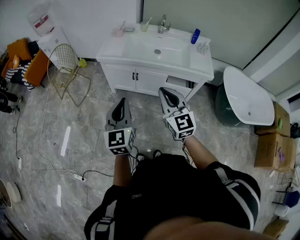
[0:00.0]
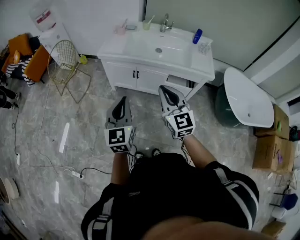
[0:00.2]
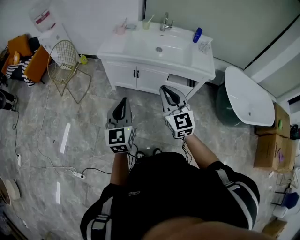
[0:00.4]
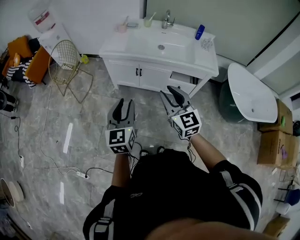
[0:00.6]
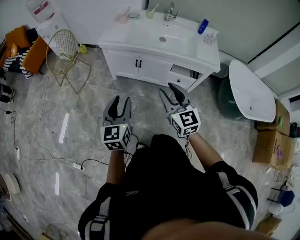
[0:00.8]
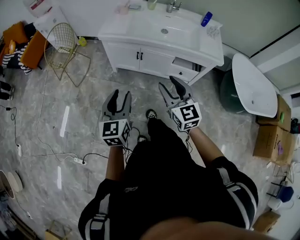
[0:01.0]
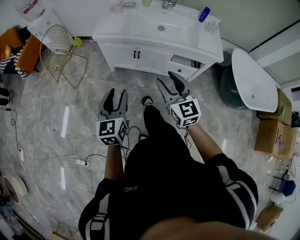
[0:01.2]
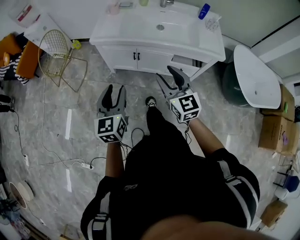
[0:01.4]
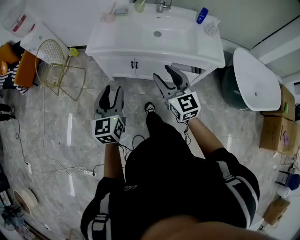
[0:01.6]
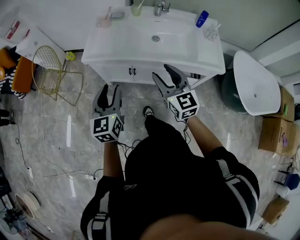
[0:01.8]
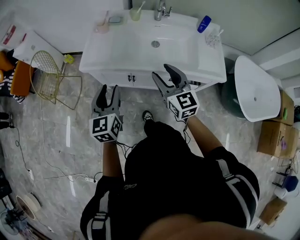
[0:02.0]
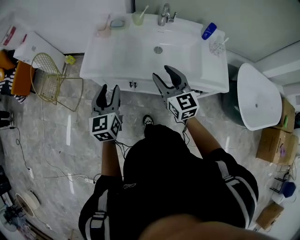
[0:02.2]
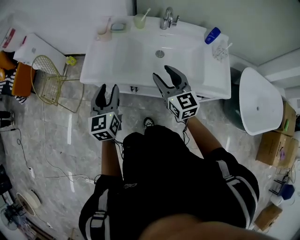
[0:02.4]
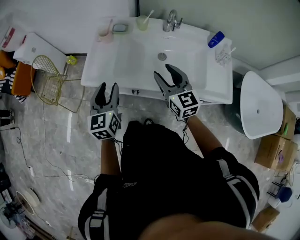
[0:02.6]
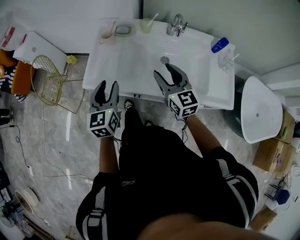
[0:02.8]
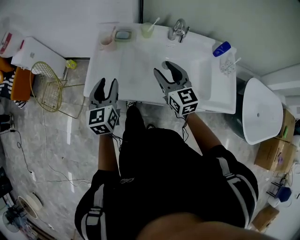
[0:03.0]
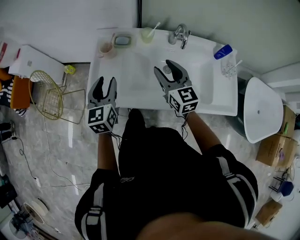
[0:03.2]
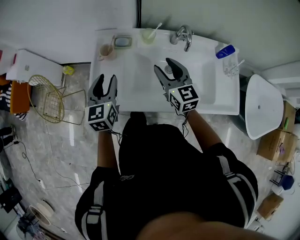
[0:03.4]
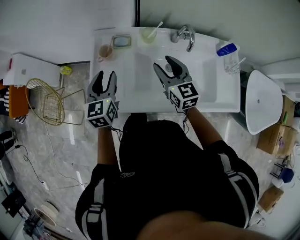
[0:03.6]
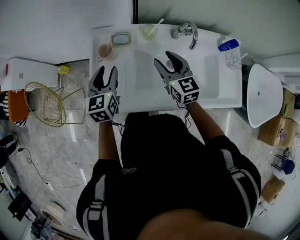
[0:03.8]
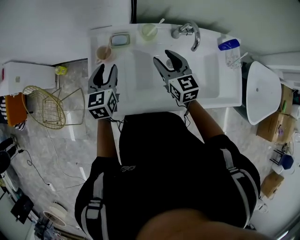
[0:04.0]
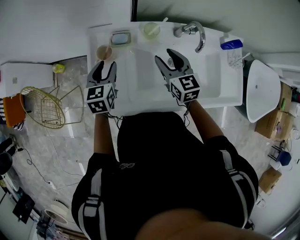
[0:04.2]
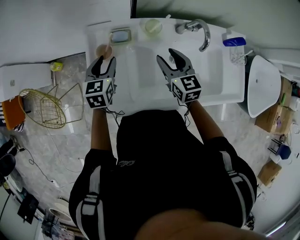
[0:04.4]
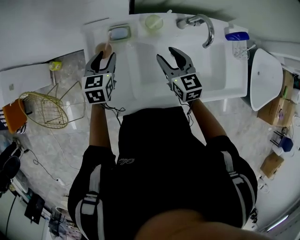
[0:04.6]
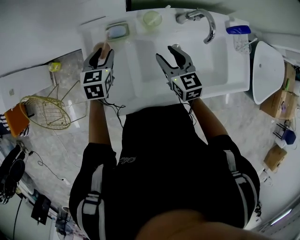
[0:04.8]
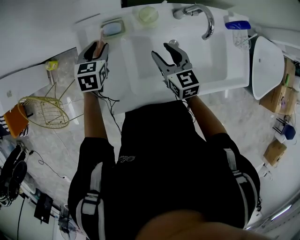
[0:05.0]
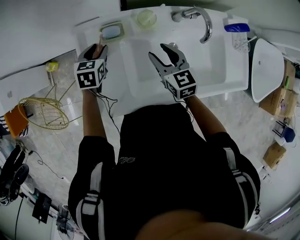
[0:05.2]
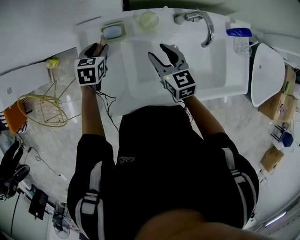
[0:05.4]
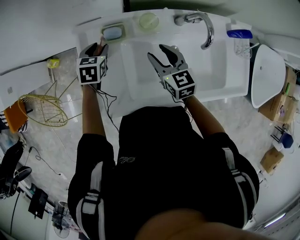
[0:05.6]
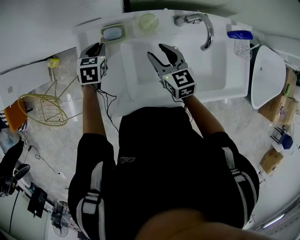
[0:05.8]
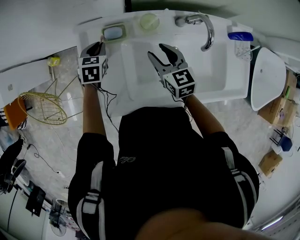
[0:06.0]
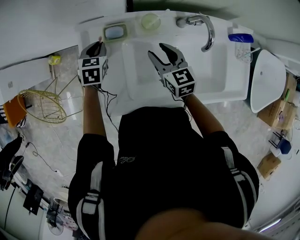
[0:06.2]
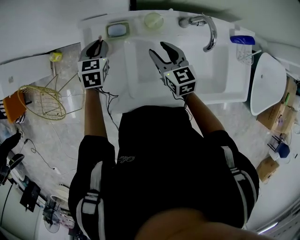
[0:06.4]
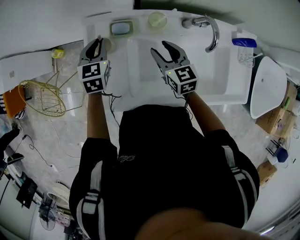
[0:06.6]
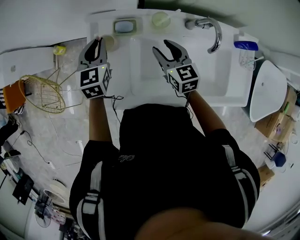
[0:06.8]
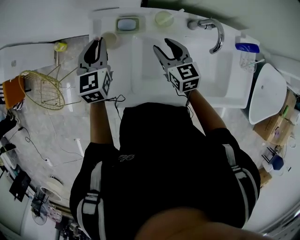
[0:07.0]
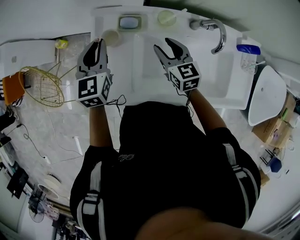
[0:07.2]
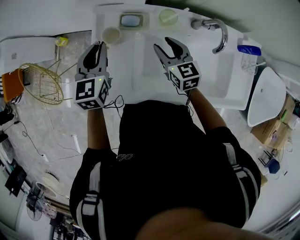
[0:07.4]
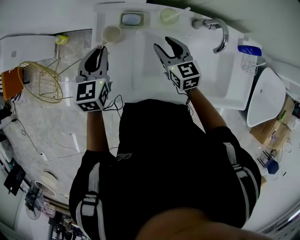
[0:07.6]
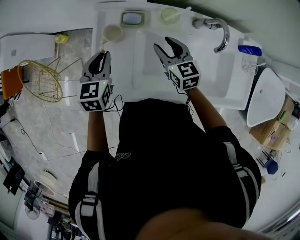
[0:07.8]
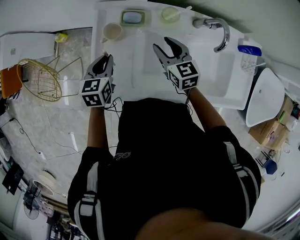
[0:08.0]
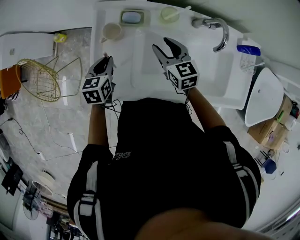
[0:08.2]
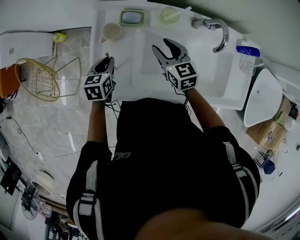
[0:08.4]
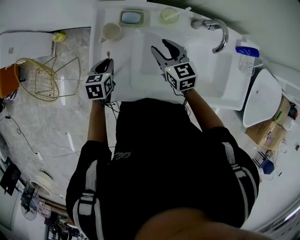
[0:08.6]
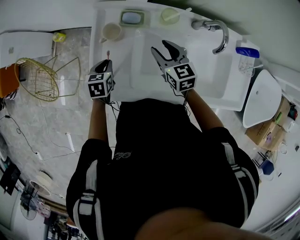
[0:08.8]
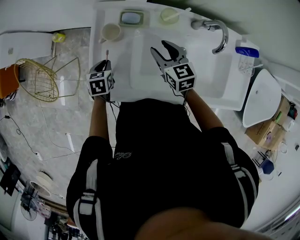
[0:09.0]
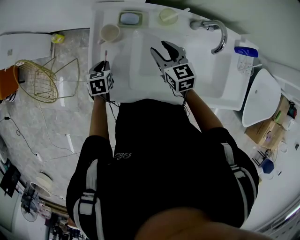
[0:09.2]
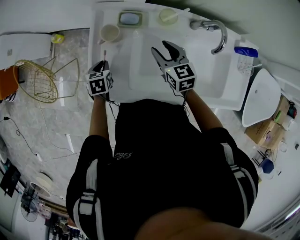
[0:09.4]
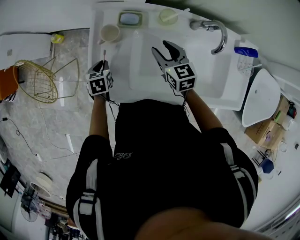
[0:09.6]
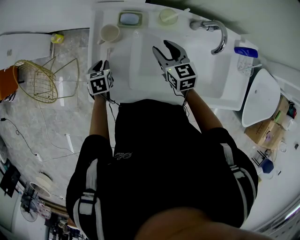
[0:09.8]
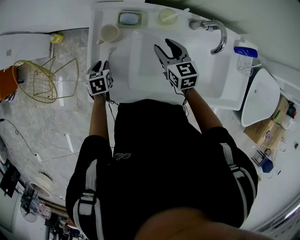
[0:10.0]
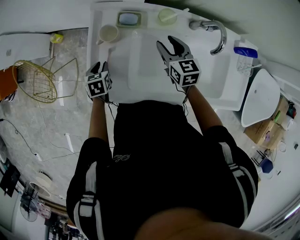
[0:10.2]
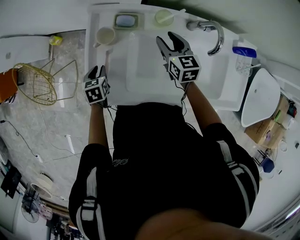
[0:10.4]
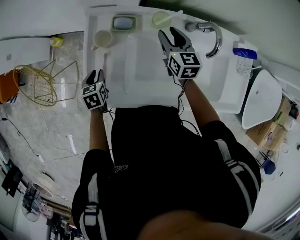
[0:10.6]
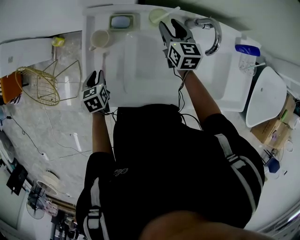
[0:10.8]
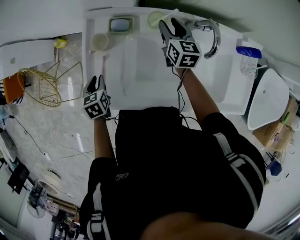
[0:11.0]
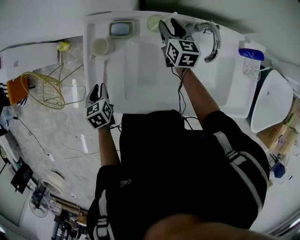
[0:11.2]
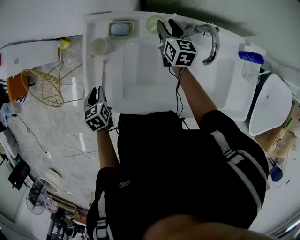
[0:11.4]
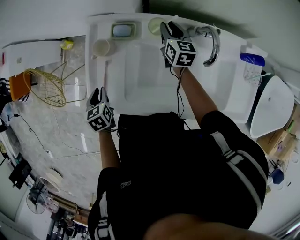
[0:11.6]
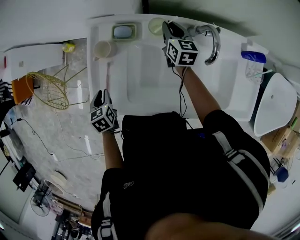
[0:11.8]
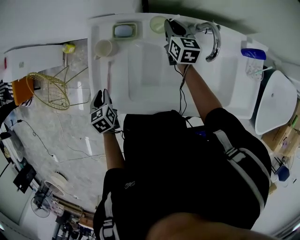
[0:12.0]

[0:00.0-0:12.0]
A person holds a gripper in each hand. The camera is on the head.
0:00.0 to 0:01.6: The right gripper shifts approximately 15 cm forward, and opens up, while the left gripper goes about 20 cm forward and downward, and opens.
0:01.6 to 0:03.0: Both grippers move forward, roughly 40 cm.
0:03.0 to 0:04.4: The right gripper travels forward and downward by about 20 cm, and rotates some 20 degrees, while the left gripper goes approximately 25 cm forward, and turns by some 30 degrees.
0:04.4 to 0:06.0: The right gripper moves about 5 cm. The left gripper heads downward and forward, covering roughly 10 cm, and closes its fingers.
0:06.0 to 0:07.6: The left gripper moves upward and backward, approximately 15 cm, and changes its angle by approximately 30 degrees.
0:07.6 to 0:09.0: The left gripper shifts roughly 20 cm downward, and swivels about 30 degrees.
0:09.0 to 0:10.4: The right gripper goes about 5 cm to the right.
0:10.4 to 0:12.0: The right gripper travels forward and to the right by roughly 10 cm, and closes its fingers. The left gripper is displaced backward by roughly 5 cm.

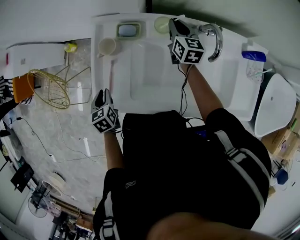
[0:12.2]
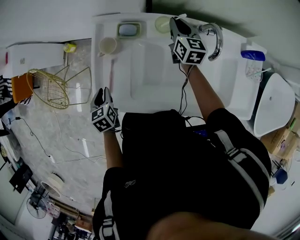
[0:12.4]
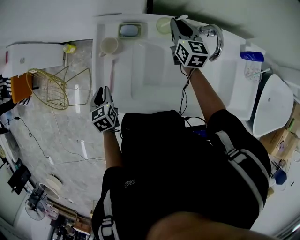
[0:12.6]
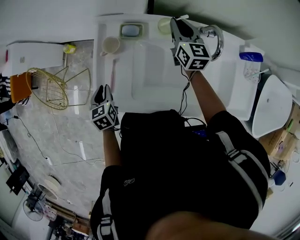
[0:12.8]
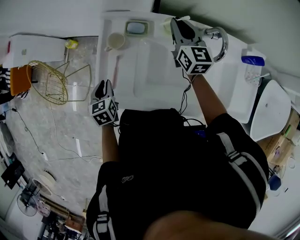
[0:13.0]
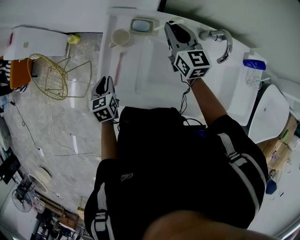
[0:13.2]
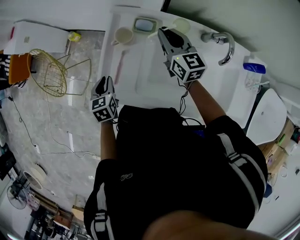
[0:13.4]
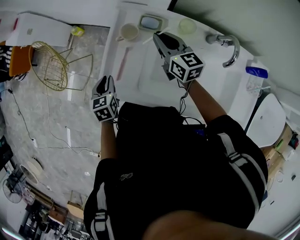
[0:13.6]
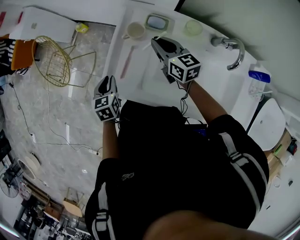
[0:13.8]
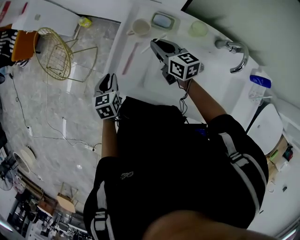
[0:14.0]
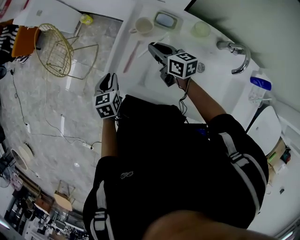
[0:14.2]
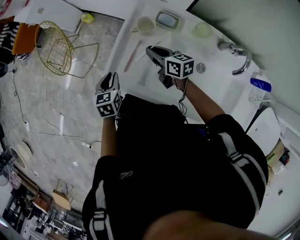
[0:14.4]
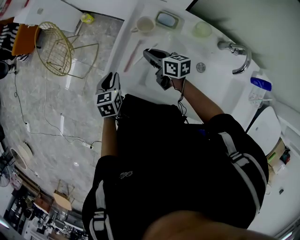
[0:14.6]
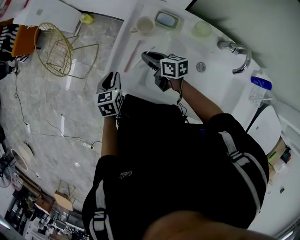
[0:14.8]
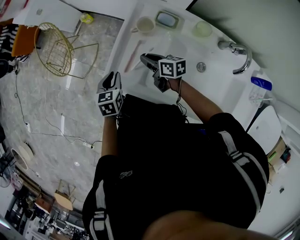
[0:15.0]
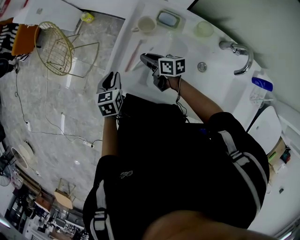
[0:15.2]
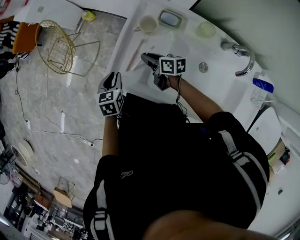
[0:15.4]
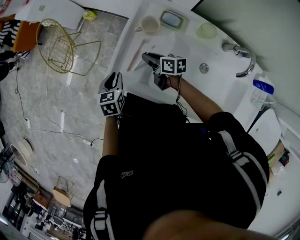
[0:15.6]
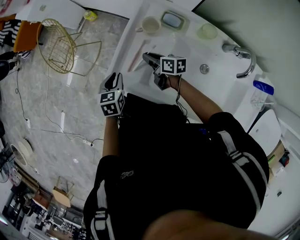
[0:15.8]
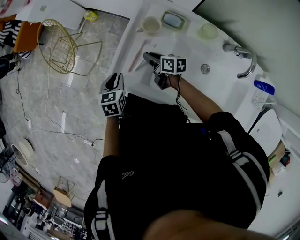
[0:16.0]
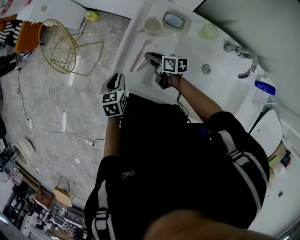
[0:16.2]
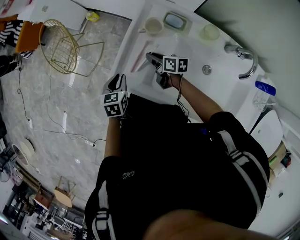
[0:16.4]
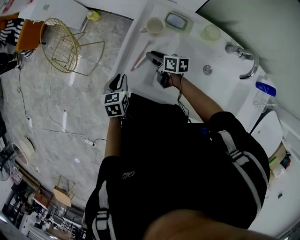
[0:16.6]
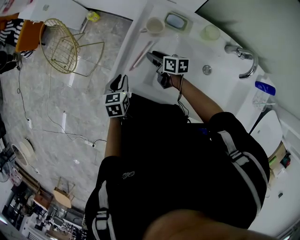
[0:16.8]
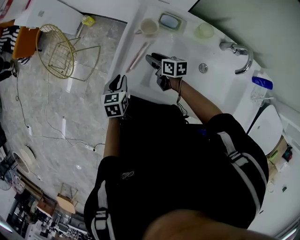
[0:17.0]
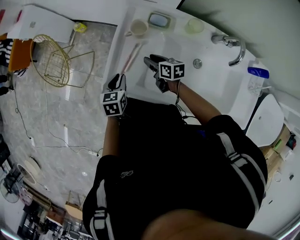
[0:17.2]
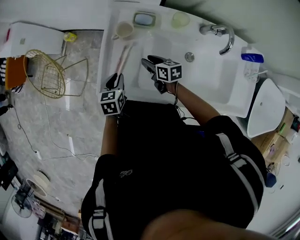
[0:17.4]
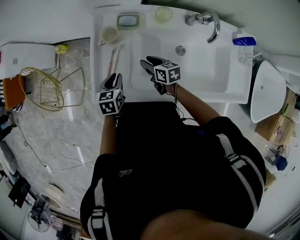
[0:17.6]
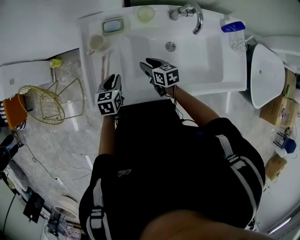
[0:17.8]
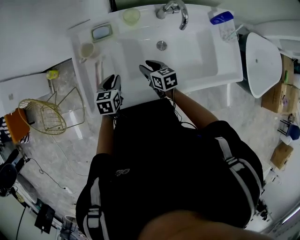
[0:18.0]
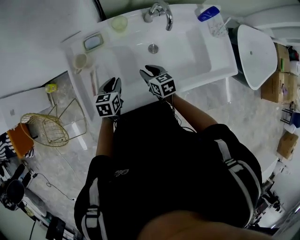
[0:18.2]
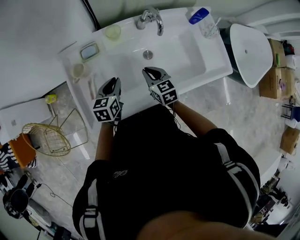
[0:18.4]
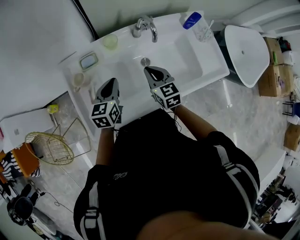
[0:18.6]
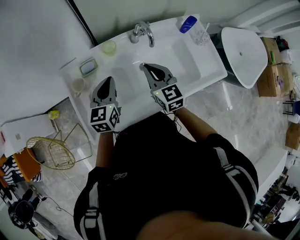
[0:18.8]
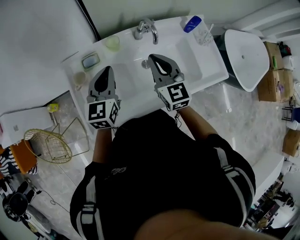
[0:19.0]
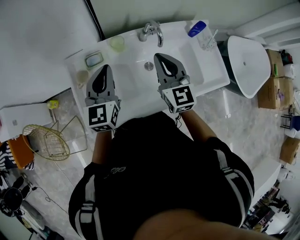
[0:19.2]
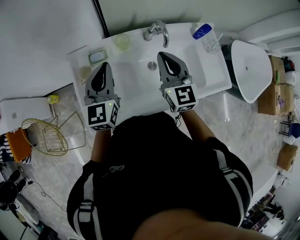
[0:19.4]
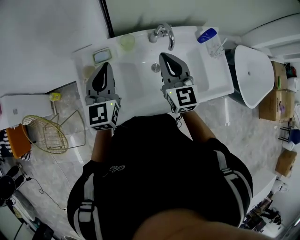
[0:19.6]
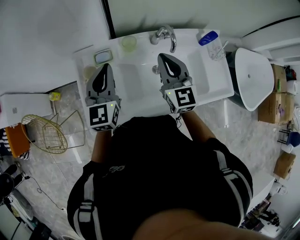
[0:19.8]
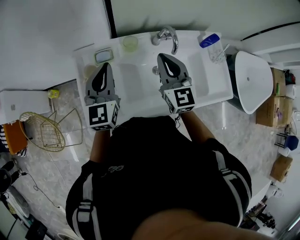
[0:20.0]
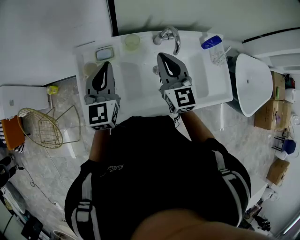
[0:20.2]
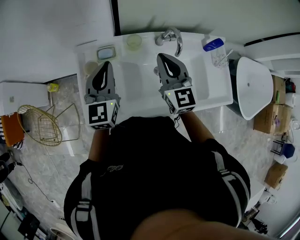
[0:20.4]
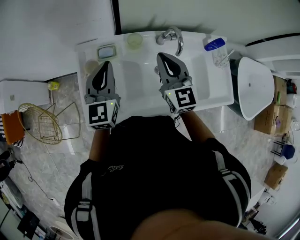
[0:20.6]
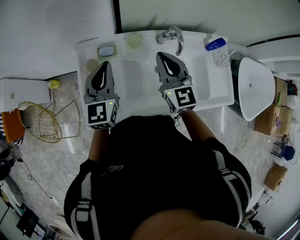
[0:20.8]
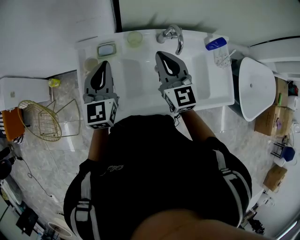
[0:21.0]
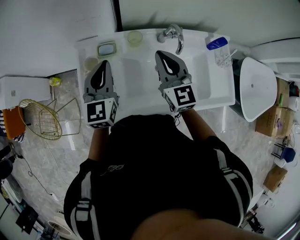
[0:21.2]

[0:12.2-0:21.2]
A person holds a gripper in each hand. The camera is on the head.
0:12.2 to 0:13.8: The right gripper shifts roughly 25 cm to the left, and turns by roughly 40 degrees. The left gripper shifts by some 5 cm.
0:13.8 to 0:15.2: The right gripper travels downward and to the left by roughly 15 cm, and swivels about 30 degrees.
0:15.2 to 0:16.6: The grippers make only small movements.
0:16.6 to 0:18.2: The left gripper changes place by approximately 20 cm, and swivels approximately 40 degrees, while the right gripper ends up about 25 cm from where it was, and changes its angle by about 40 degrees.
0:18.2 to 0:19.8: Both grippers travel together upward, approximately 25 cm. The right gripper tips its fingers upward by approximately 40 degrees, and closes its fingers. The left gripper tips its fingers upward by some 40 degrees.
0:19.8 to 0:21.2: There are only small adjustments of the grippers.

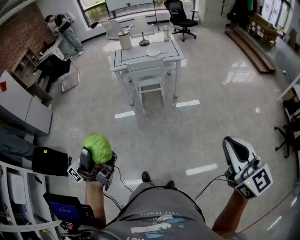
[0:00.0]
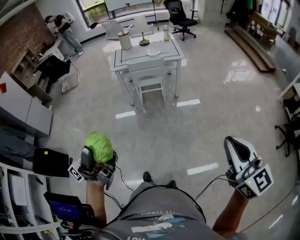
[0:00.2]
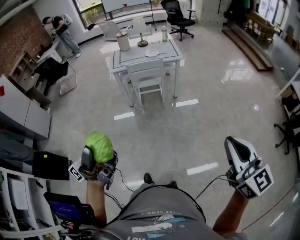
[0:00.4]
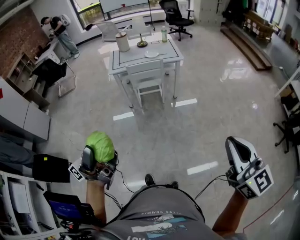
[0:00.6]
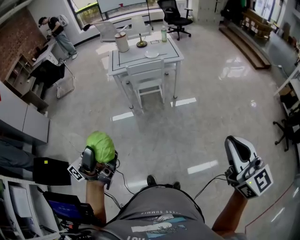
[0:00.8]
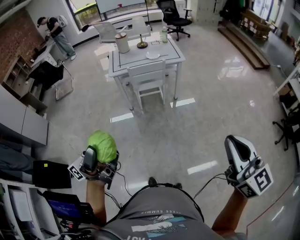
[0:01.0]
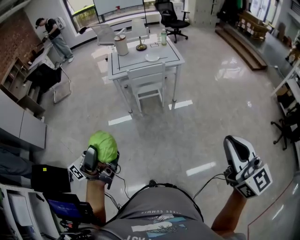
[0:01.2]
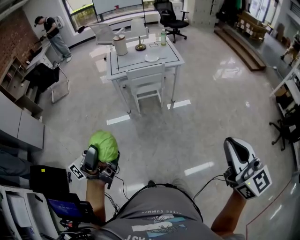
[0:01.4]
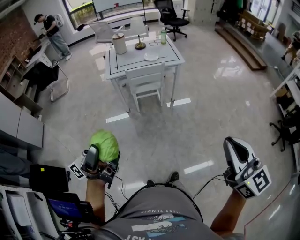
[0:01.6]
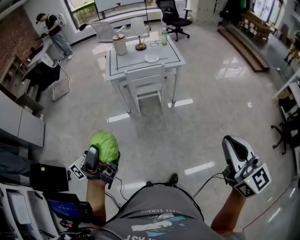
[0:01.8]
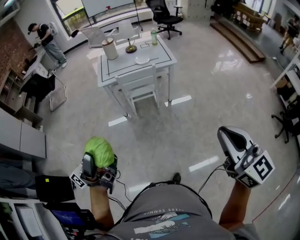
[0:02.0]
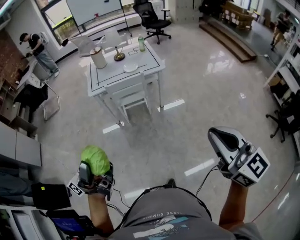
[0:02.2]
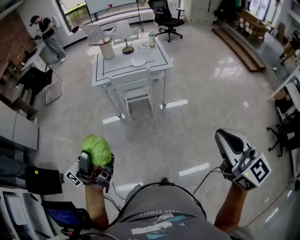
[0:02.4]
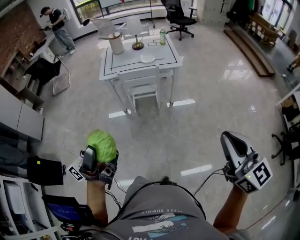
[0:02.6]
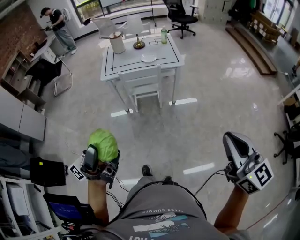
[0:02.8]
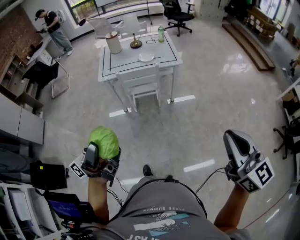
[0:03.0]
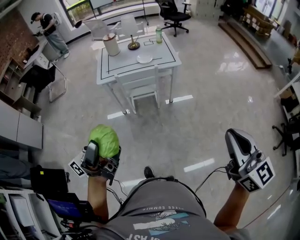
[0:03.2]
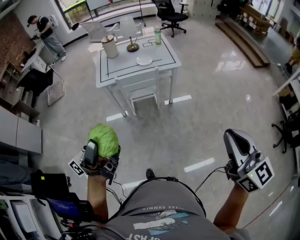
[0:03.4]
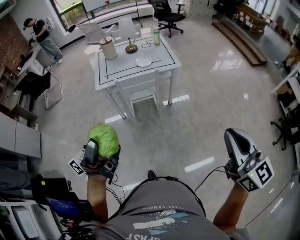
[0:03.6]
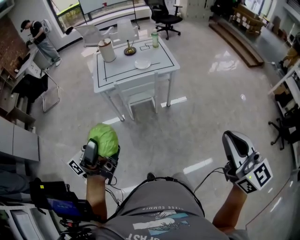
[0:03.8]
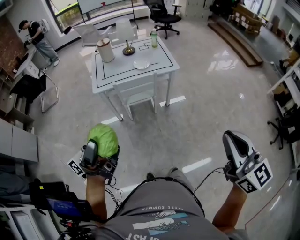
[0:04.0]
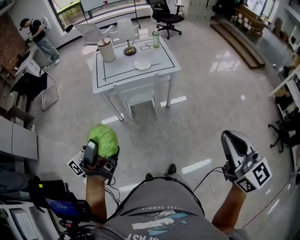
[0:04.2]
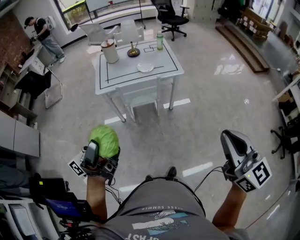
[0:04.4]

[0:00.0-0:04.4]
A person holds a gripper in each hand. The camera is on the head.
0:00.0 to 0:01.4: The right gripper shifts about 15 cm to the left and forward. Meanwhile the left gripper is displaced forward and to the left by some 15 cm.
0:01.4 to 0:03.0: The two grippers go some 20 cm forward and to the right.
0:03.0 to 0:04.4: Both grippers travel together forward and to the left, approximately 10 cm.
